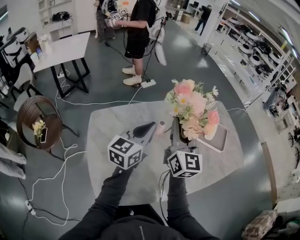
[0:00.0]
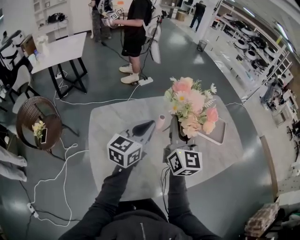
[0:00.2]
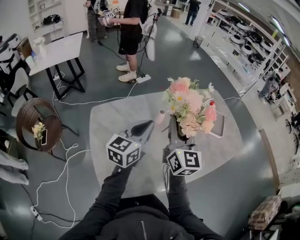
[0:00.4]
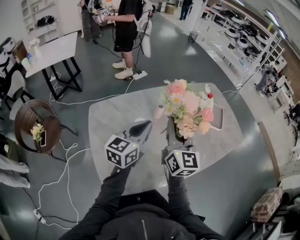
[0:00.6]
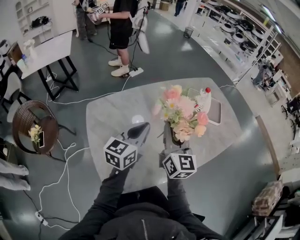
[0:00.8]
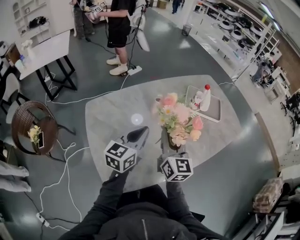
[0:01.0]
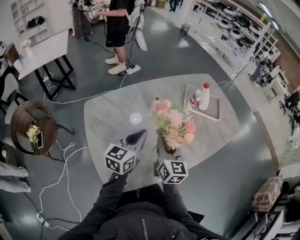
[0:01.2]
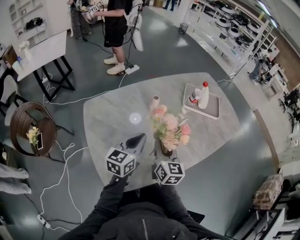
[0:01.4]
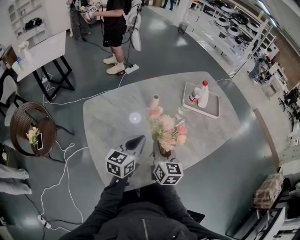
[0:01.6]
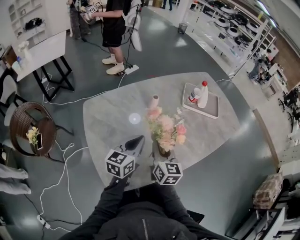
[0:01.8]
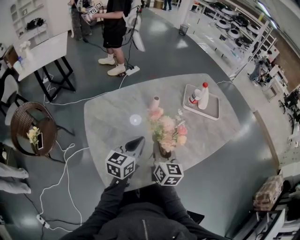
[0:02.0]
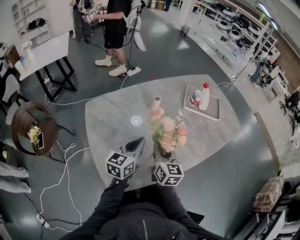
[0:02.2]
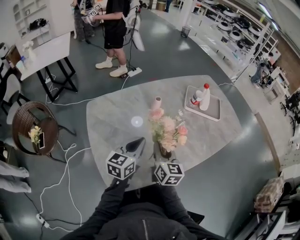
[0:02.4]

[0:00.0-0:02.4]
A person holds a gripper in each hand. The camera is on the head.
0:00.0 to 0:01.2: The left gripper is displaced backward and downward by roughly 15 cm; the right gripper moves downward and backward, roughly 20 cm.
0:01.2 to 0:02.4: The right gripper is displaced downward by roughly 5 cm.

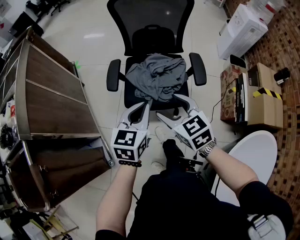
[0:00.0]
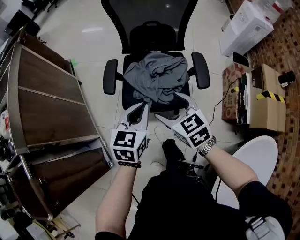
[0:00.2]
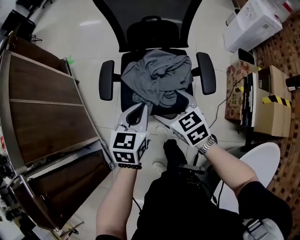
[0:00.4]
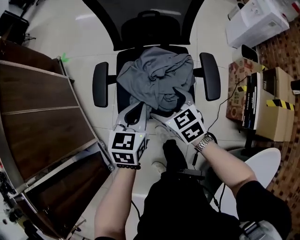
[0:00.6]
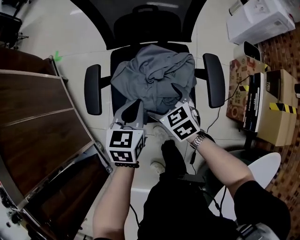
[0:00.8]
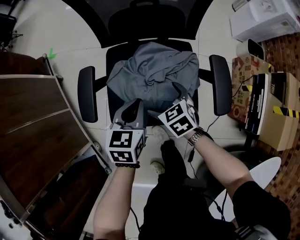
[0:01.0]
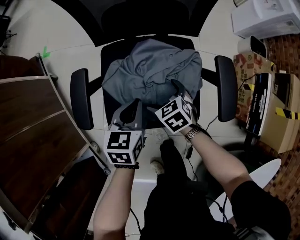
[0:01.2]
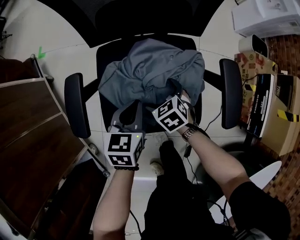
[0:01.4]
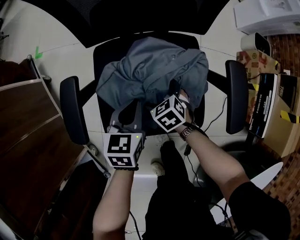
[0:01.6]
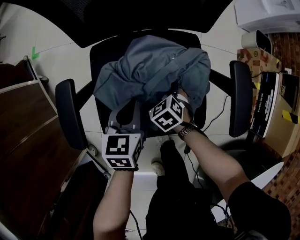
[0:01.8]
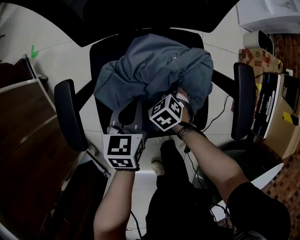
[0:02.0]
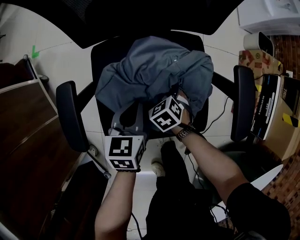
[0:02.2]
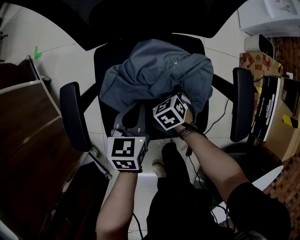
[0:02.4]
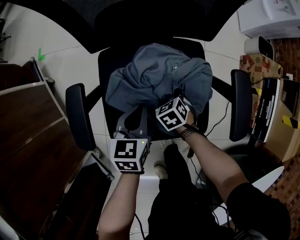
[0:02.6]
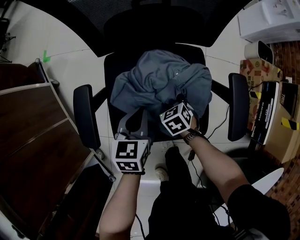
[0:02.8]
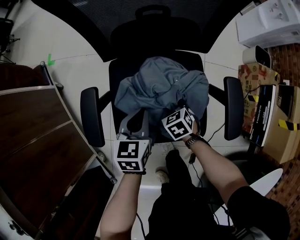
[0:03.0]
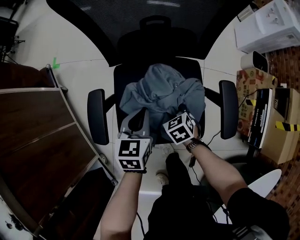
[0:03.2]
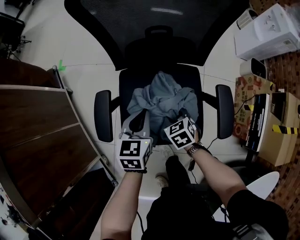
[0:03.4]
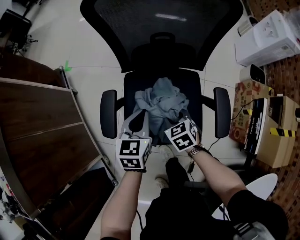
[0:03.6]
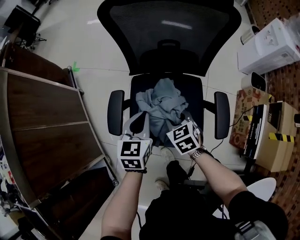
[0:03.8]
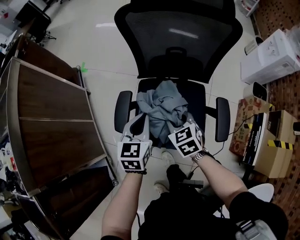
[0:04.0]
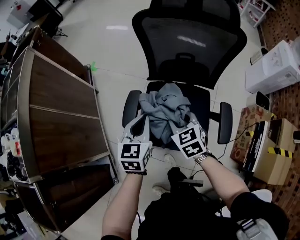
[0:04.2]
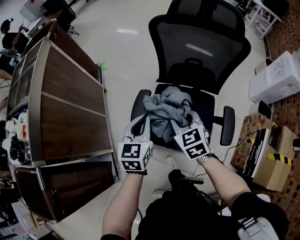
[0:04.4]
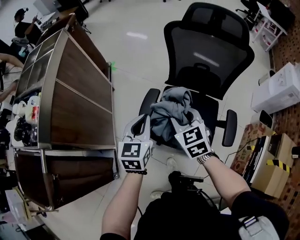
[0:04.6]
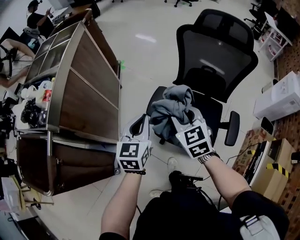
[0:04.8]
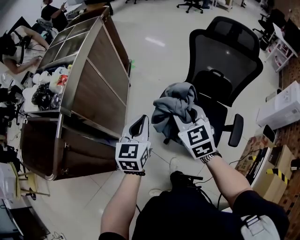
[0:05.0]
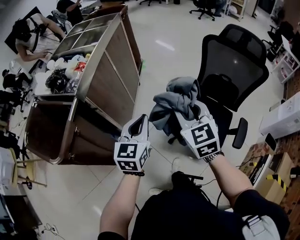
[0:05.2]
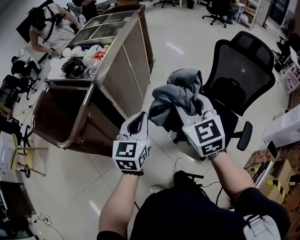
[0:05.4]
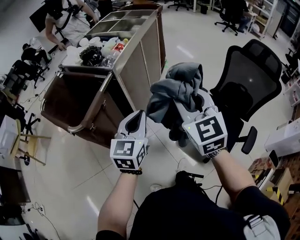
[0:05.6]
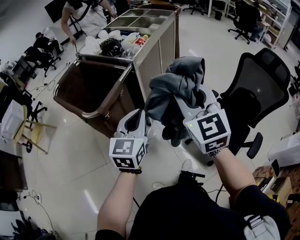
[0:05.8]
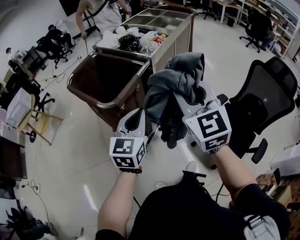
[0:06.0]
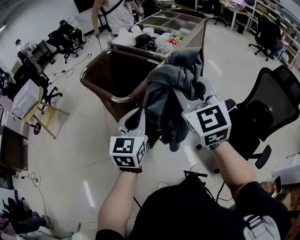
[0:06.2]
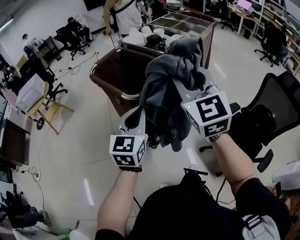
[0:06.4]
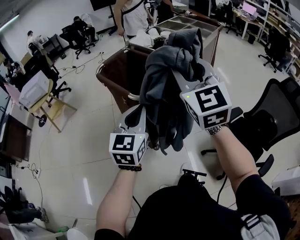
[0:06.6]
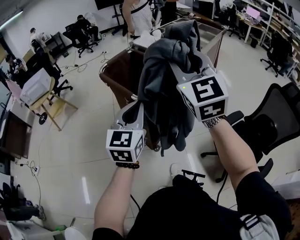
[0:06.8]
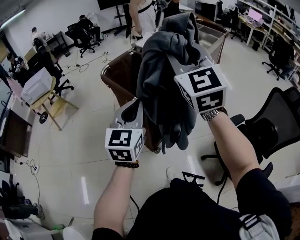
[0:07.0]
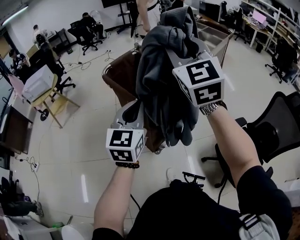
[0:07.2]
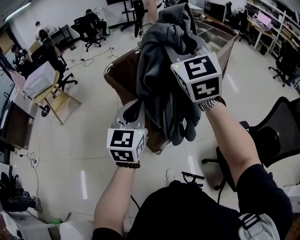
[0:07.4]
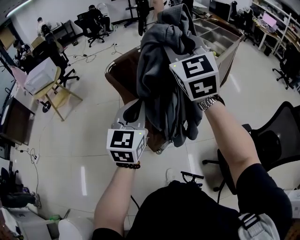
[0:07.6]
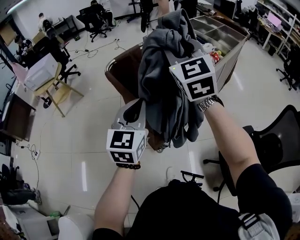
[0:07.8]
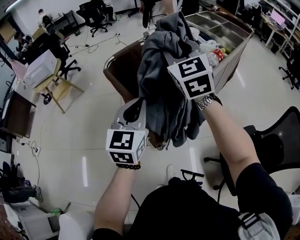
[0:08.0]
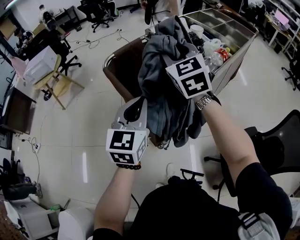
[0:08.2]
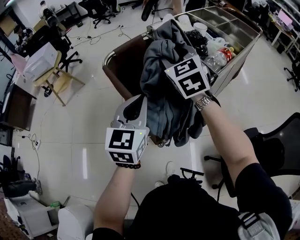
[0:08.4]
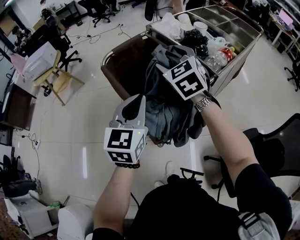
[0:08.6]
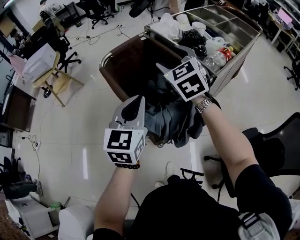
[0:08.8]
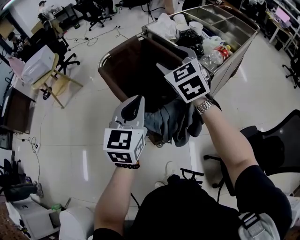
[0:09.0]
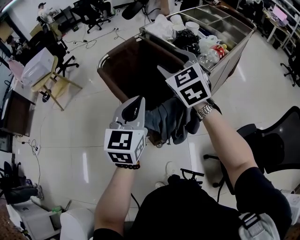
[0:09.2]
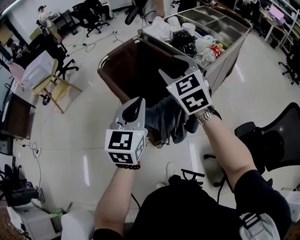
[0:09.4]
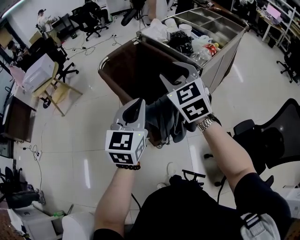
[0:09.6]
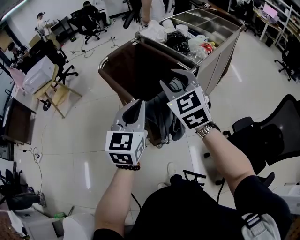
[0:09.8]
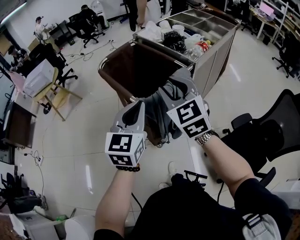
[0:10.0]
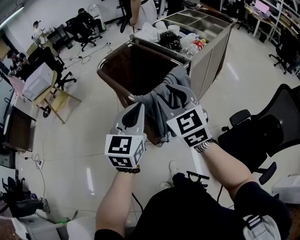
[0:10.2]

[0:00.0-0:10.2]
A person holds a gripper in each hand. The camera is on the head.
0:00.0 to 0:01.4: The two grippers go approximately 60 cm downward and forward. The right gripper angles its fingers downward, by approximately 30 degrees, and opens its fingers.
0:01.4 to 0:03.0: The right gripper reaches roughly 10 cm downward, then returns, and closes up. The left gripper travels downward and back again, some 5 cm each way.
0:03.0 to 0:04.4: The grippers both shift upward by roughly 40 cm. The right gripper tips its fingers upward by some 30 degrees. Meanwhile the left gripper swivels some 20 degrees.
0:04.4 to 0:05.8: The two grippers travel together, approximately 50 cm. The right gripper turns by some 40 degrees. The left gripper turns by roughly 30 degrees.
0:05.8 to 0:07.2: The left gripper is displaced to the left by roughly 15 cm, while the right gripper goes left and right, some 15 cm each way, reversing 2 times.
0:07.2 to 0:08.8: The right gripper moves forward and downward, some 35 cm, and turns by some 30 degrees. Meanwhile the left gripper heads forward, covering roughly 20 cm.
0:08.8 to 0:10.2: The left gripper heads backward, covering approximately 15 cm, while the right gripper travels backward by roughly 25 cm.

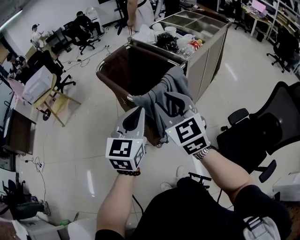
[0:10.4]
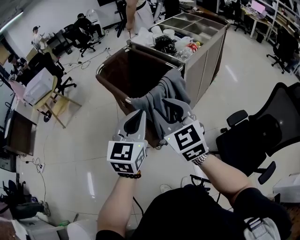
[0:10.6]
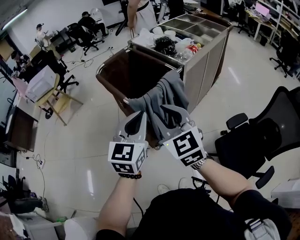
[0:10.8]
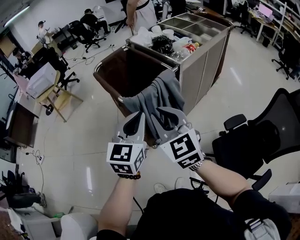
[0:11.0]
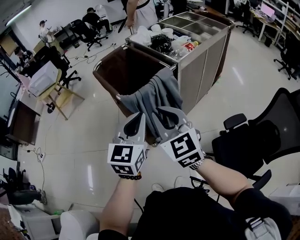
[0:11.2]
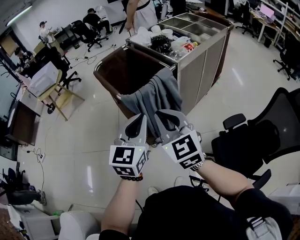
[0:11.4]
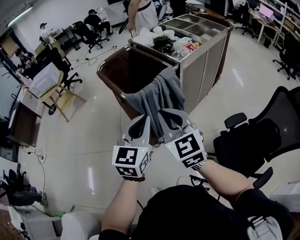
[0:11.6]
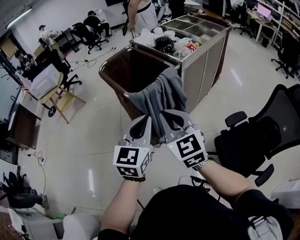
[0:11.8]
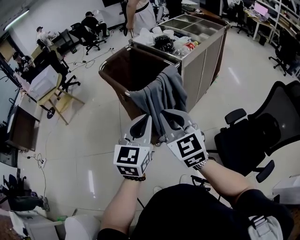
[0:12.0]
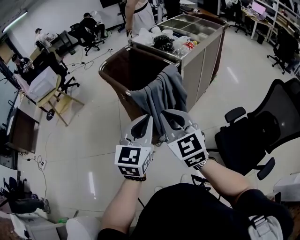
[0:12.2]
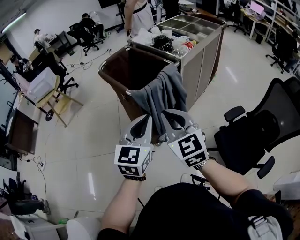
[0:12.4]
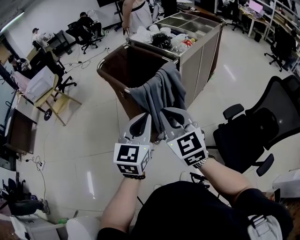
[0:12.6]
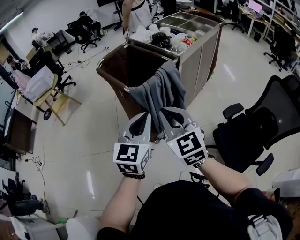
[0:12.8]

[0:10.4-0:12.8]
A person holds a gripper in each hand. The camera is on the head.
0:10.4 to 0:11.6: The left gripper moves to the right and backward, some 10 cm; the right gripper shifts roughly 5 cm backward.
0:11.6 to 0:12.8: The grippers stay close to where they were, moving slightly.

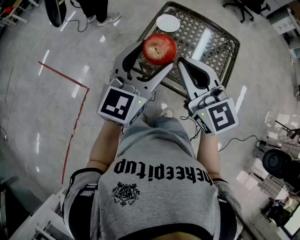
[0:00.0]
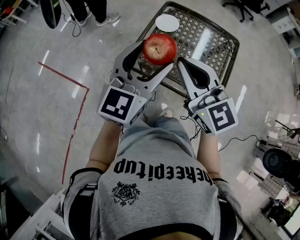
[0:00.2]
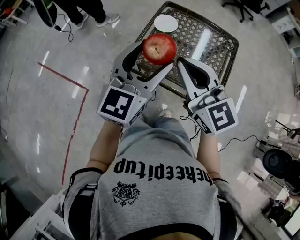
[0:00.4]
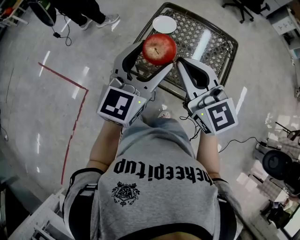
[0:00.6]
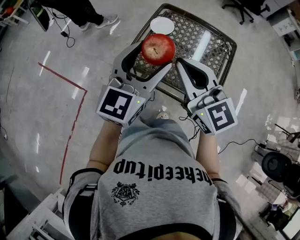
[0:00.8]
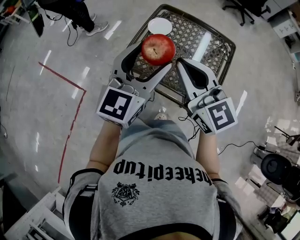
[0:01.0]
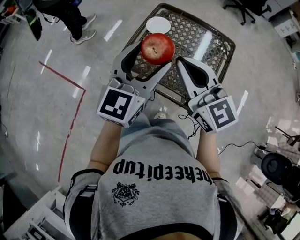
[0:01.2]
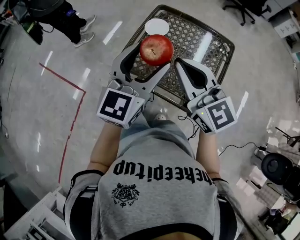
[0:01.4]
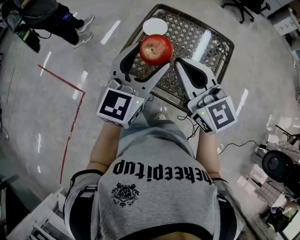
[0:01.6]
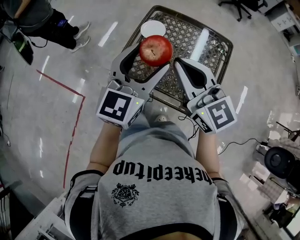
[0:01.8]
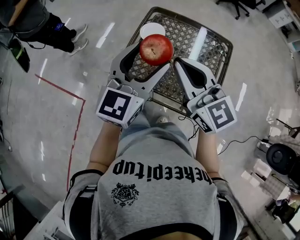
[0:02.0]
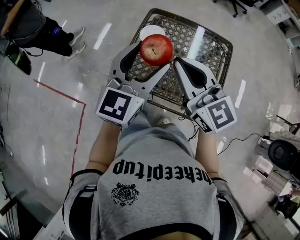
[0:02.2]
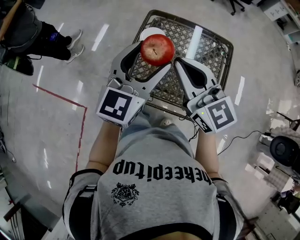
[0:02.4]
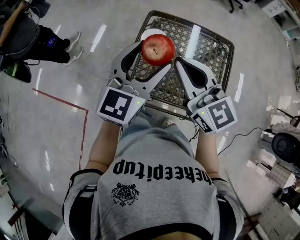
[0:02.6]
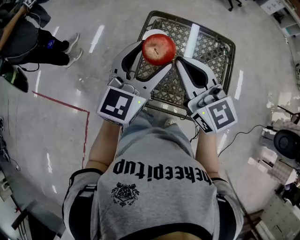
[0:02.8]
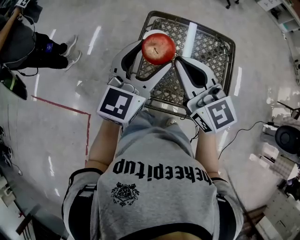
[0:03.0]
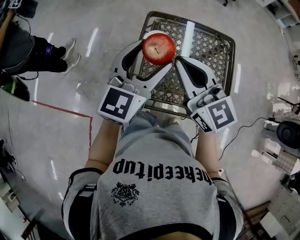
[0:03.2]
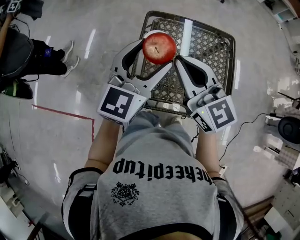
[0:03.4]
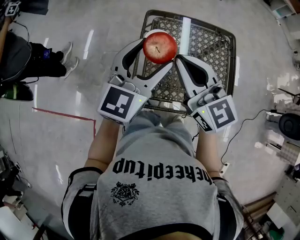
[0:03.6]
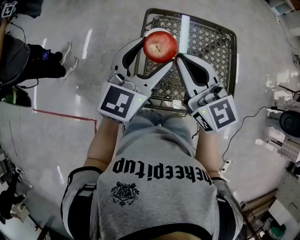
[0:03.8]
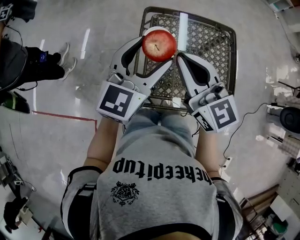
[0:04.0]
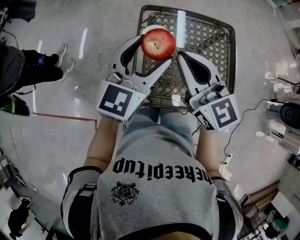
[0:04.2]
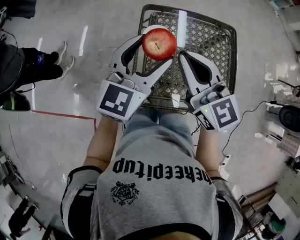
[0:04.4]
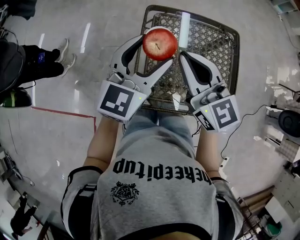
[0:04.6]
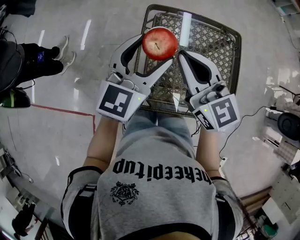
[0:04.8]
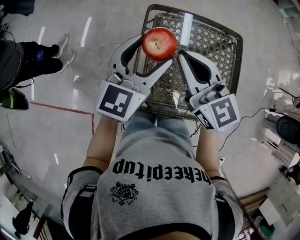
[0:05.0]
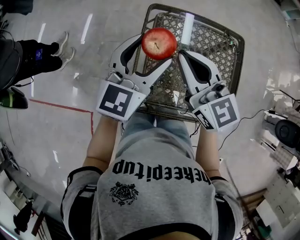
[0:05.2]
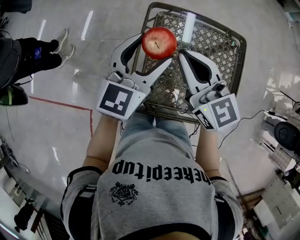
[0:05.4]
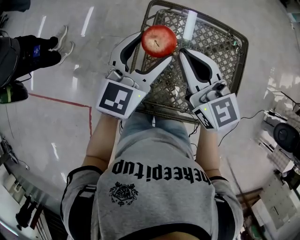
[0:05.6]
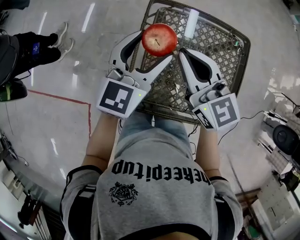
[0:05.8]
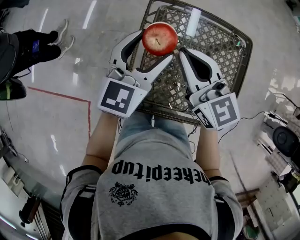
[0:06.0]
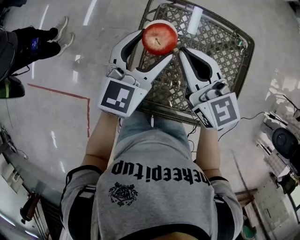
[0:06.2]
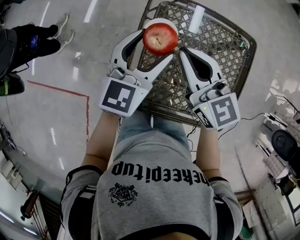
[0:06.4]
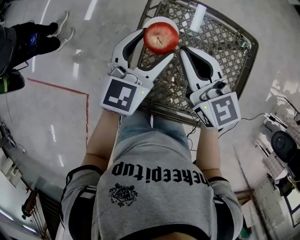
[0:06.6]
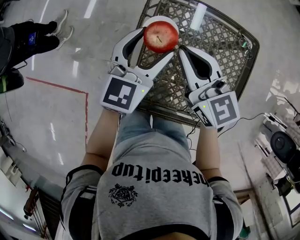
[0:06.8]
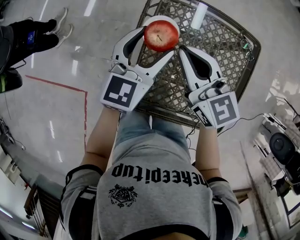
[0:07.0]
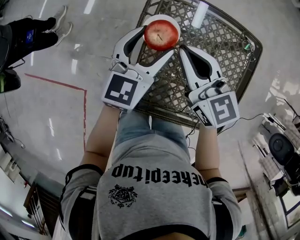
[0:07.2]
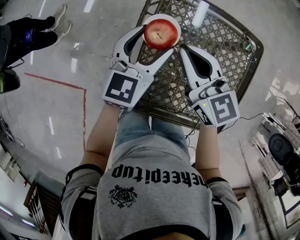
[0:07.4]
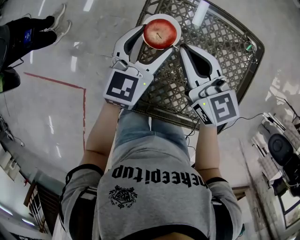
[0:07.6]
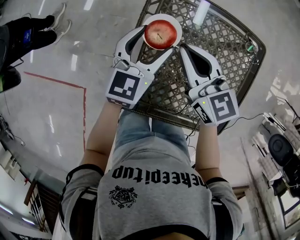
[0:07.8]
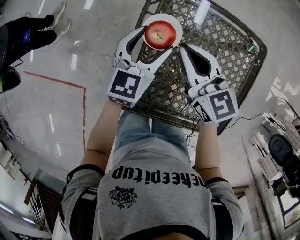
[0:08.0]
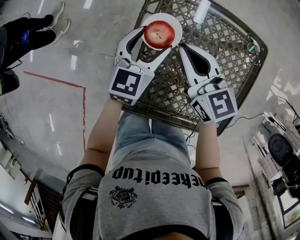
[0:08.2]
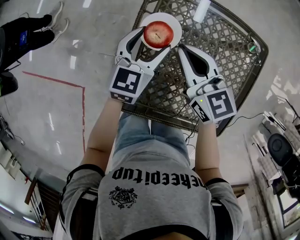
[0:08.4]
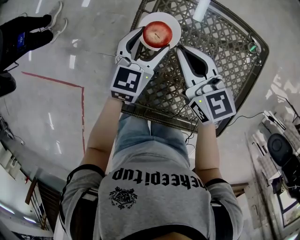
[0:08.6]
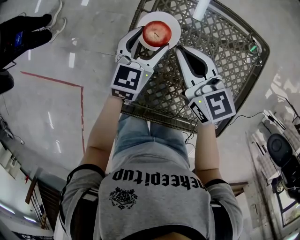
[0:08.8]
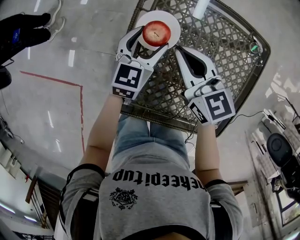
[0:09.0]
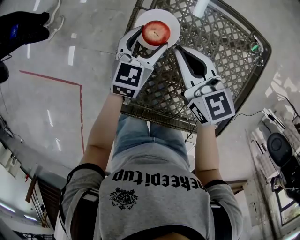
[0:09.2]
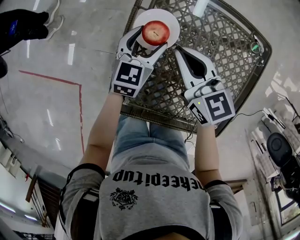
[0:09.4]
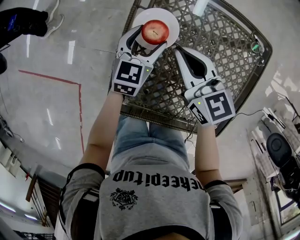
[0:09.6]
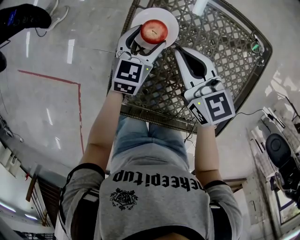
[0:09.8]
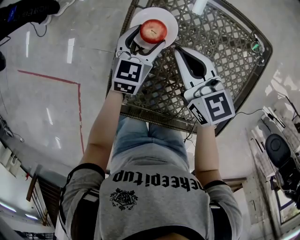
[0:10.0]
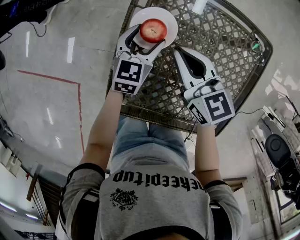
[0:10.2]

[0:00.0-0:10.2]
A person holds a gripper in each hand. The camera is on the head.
0:00.0 to 0:01.4: The grippers both shift to the right by some 10 cm.
0:01.4 to 0:03.0: The two grippers go roughly 15 cm forward and to the left.
0:03.0 to 0:04.4: The left gripper shifts by some 5 cm. The right gripper changes place by some 5 cm.
0:04.4 to 0:05.8: Both grippers move forward and downward, some 10 cm.
0:05.8 to 0:07.2: Both grippers move downward, approximately 5 cm.
0:07.2 to 0:08.8: Both grippers move downward, approximately 10 cm.
0:08.8 to 0:10.2: The left gripper heads downward, covering approximately 5 cm.
